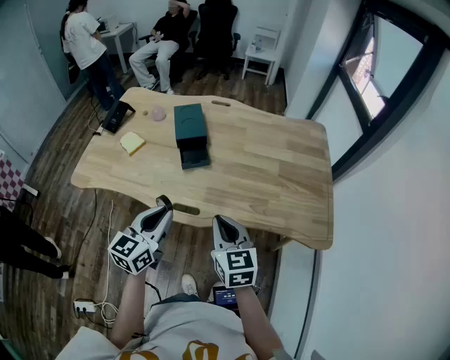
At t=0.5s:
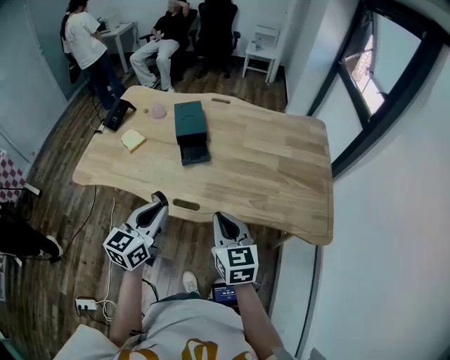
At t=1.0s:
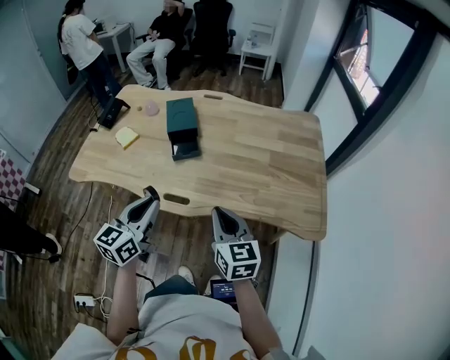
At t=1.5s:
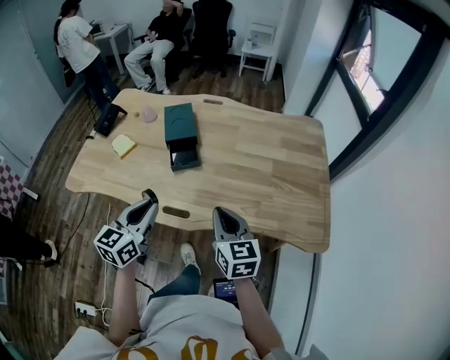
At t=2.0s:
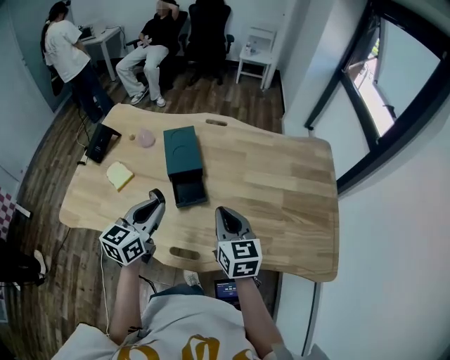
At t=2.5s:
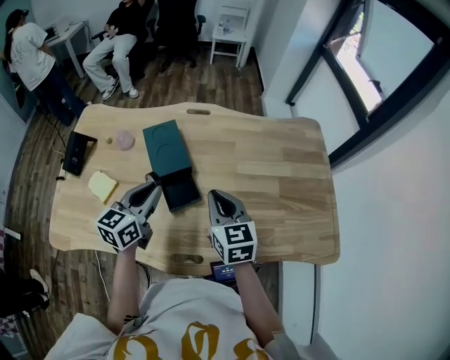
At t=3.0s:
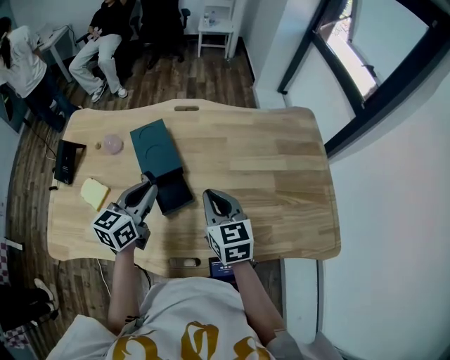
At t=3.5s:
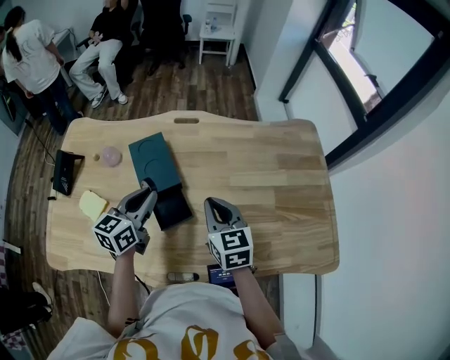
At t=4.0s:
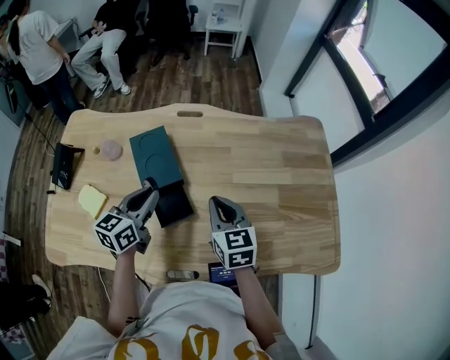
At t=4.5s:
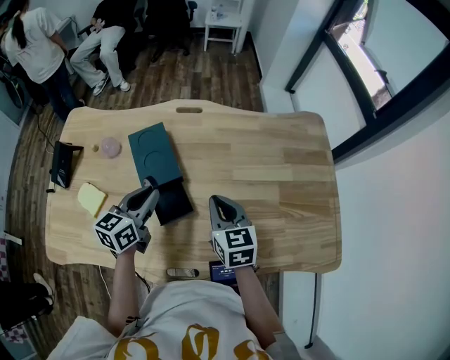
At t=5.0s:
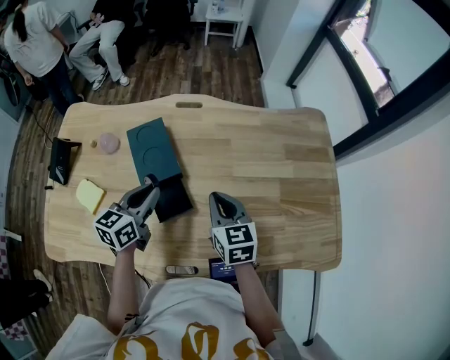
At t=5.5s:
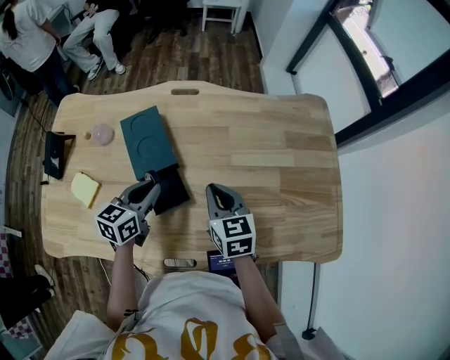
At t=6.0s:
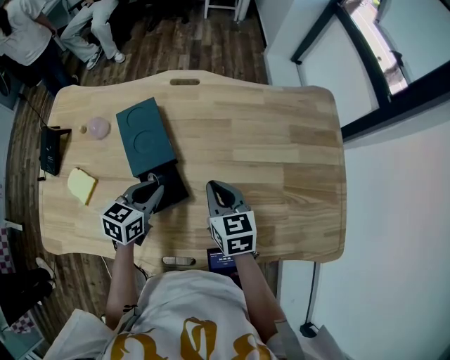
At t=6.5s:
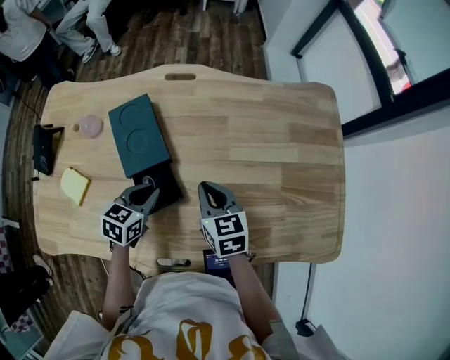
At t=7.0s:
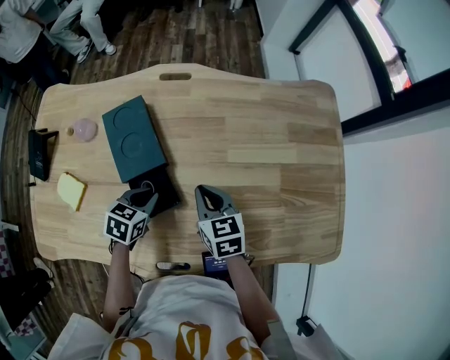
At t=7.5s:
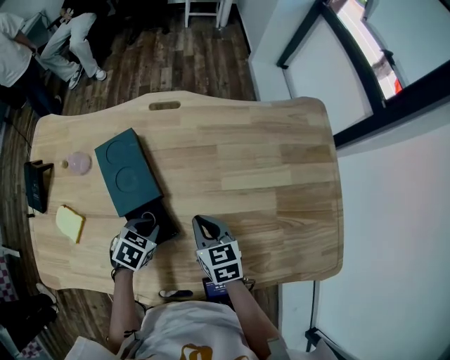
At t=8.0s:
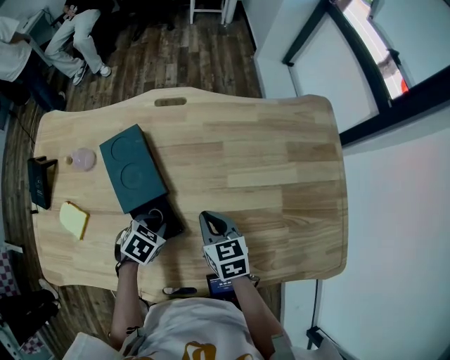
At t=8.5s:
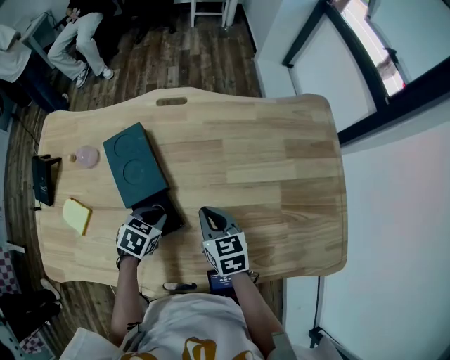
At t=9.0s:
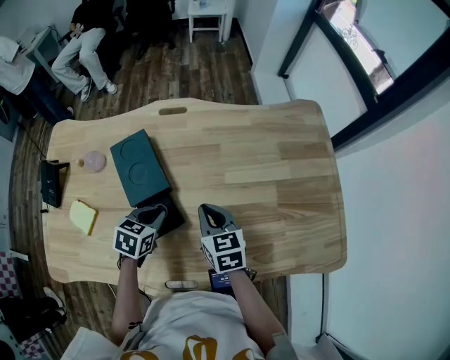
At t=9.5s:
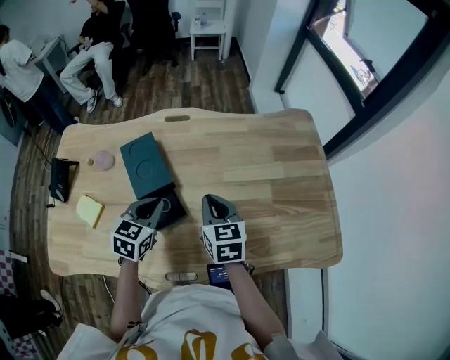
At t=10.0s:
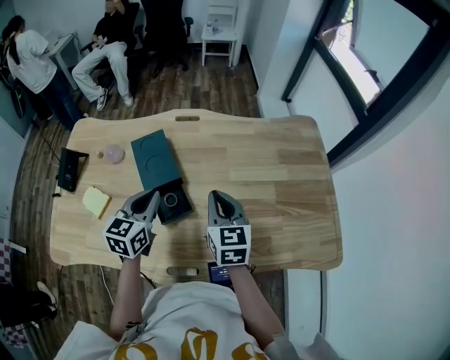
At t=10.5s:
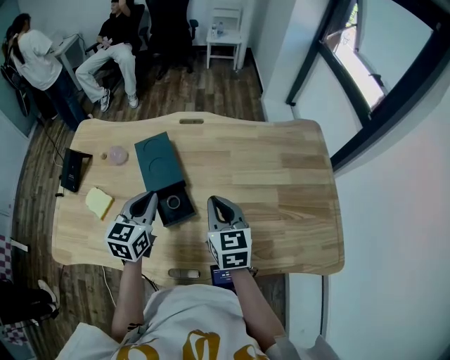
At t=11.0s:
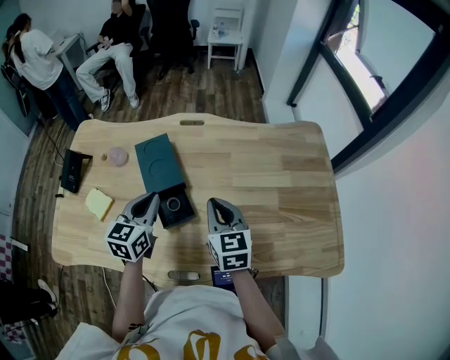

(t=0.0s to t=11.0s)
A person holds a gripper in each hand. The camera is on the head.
t=0.0s - t=2.0s: The grippers both shift forward by some 20 cm.
t=2.0s - t=3.5s: Both grippers move forward, approximately 15 cm.
t=3.5s - t=5.5s: Both grippers travel together downward, about 5 cm.
t=5.5s - t=7.5s: Both grippers move downward, some 10 cm. The left gripper tips its fingers downward by roughly 40 degrees.
t=7.5s - t=9.0s: Both grippers move upward, roughly 5 cm.
t=9.0s - t=11.0s: The right gripper moves upward, about 10 cm, while the left gripper goes roughly 15 cm upward, and angles its fingers upward, by approximately 30 degrees.

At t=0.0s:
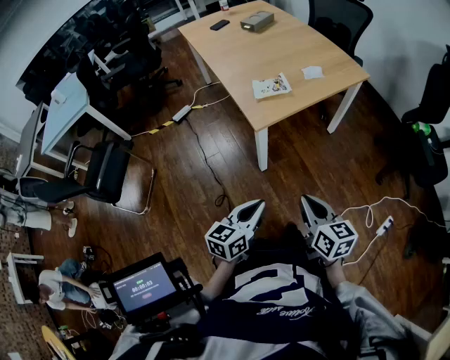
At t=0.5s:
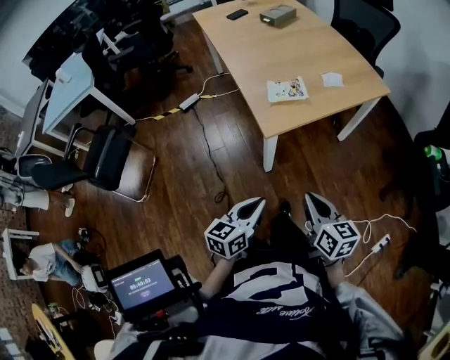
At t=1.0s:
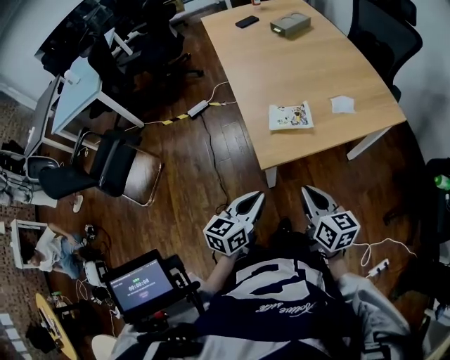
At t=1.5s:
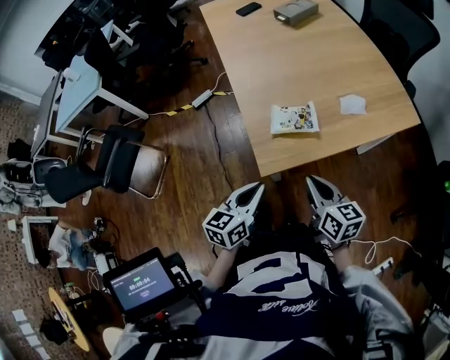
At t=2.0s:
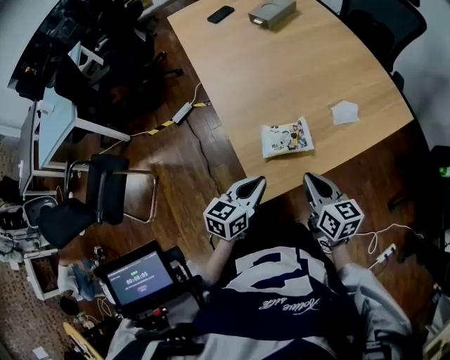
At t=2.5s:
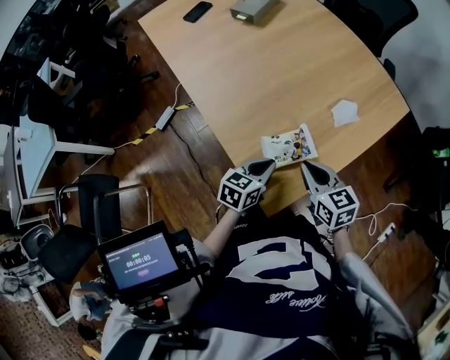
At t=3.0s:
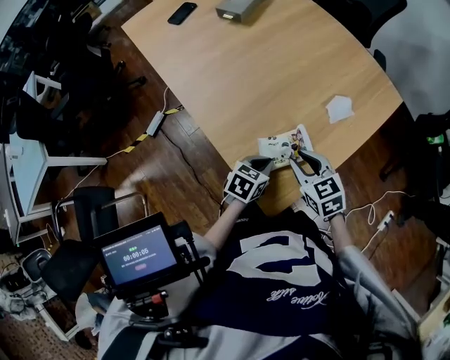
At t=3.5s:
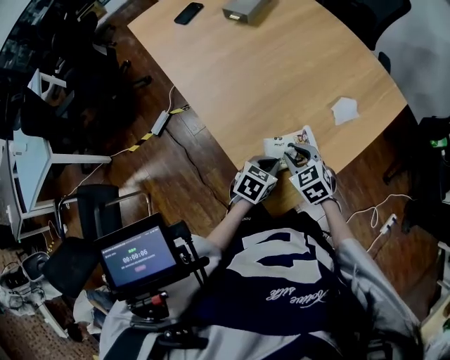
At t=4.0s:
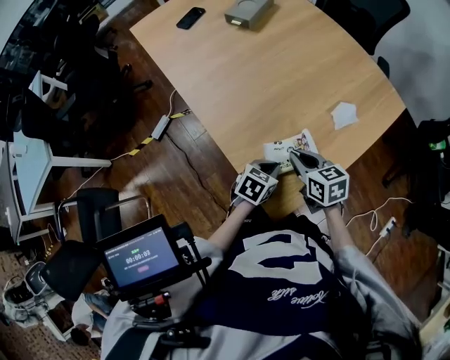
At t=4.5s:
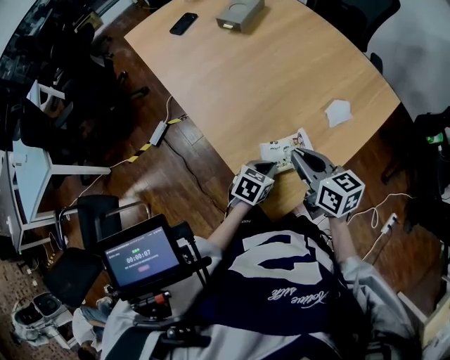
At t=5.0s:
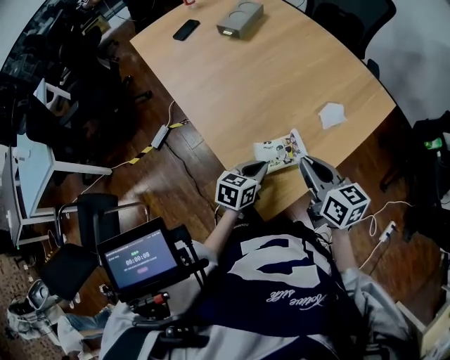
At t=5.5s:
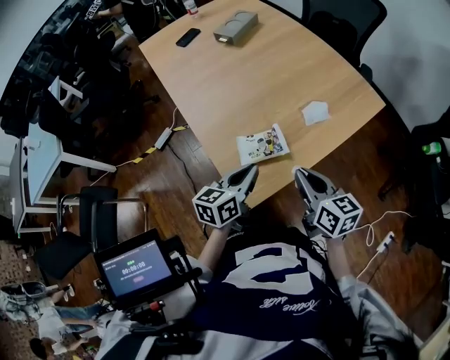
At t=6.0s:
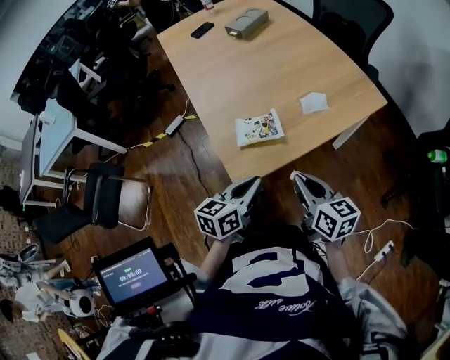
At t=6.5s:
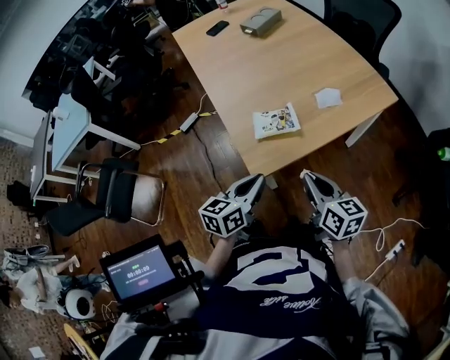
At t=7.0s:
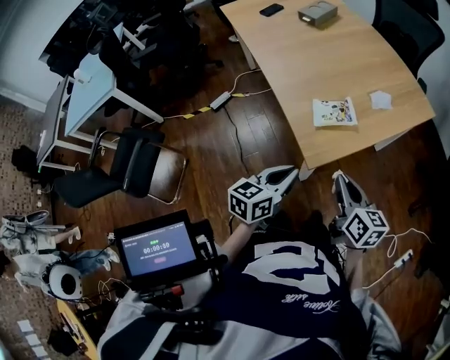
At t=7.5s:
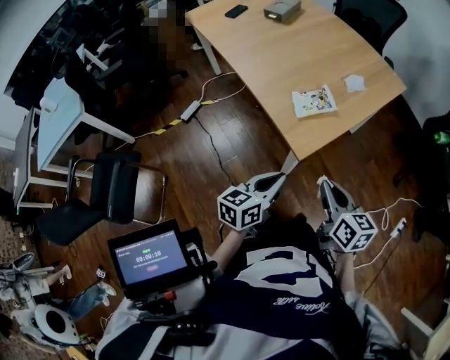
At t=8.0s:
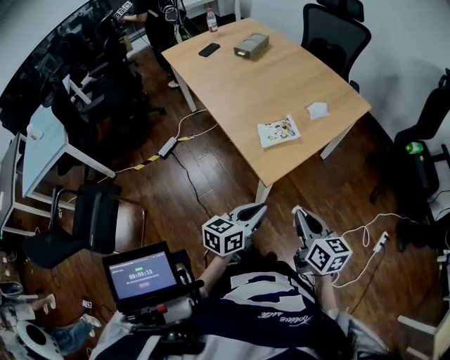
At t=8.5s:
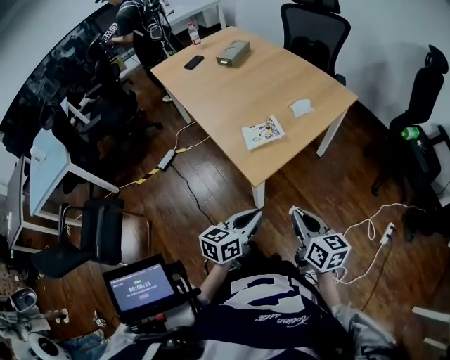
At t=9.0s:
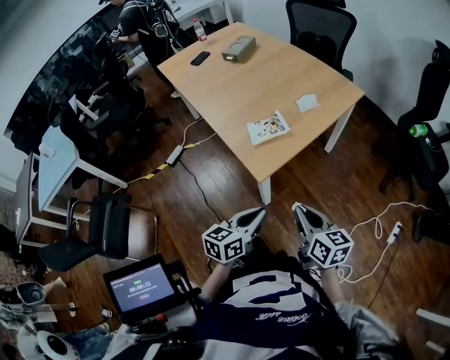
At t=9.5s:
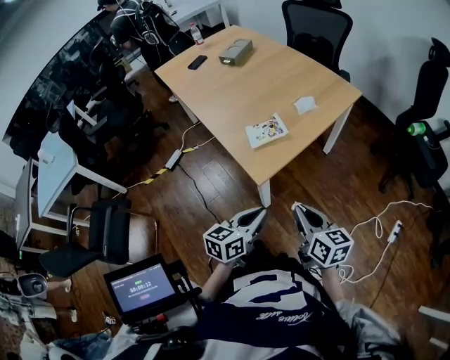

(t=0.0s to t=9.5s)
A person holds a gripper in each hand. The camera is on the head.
t=0.0s - t=2.0s: The two grippers travel together, forward, about 40 cm.
t=2.0s - t=4.0s: The right gripper shifts some 15 cm forward, to the left and downward, and opens, then closes again. The left gripper goes about 15 cm downward and forward, and turns by roughly 40 degrees.
t=4.0s - t=5.5s: The left gripper goes about 15 cm upward, and changes its angle by some 40 degrees; the right gripper shifts roughly 20 cm to the right, upward and backward.
t=5.5s - t=7.5s: The grippers both shift backward and to the left by about 25 cm.
t=7.5s - t=9.5s: The two grippers go approximately 10 cm to the right.

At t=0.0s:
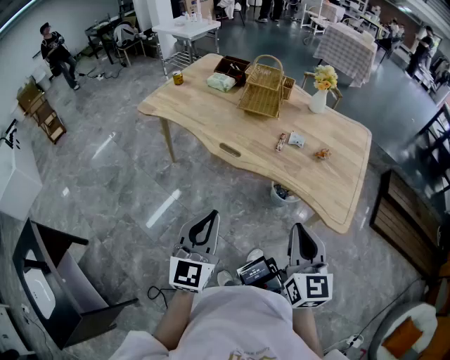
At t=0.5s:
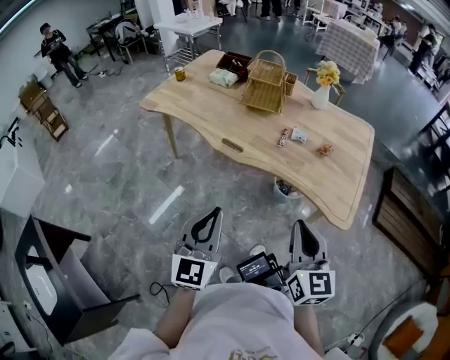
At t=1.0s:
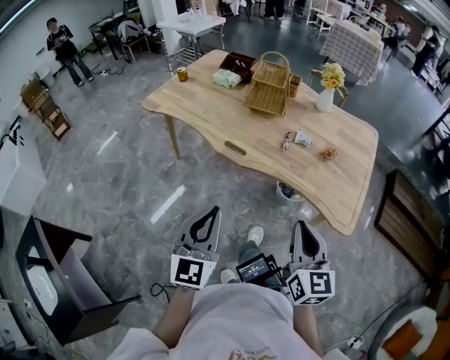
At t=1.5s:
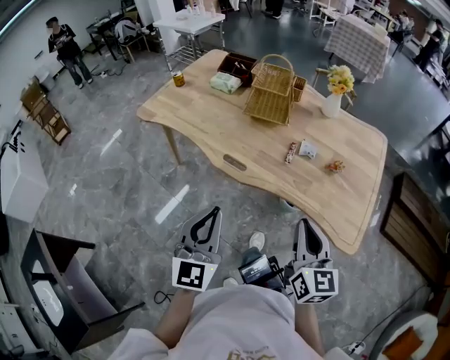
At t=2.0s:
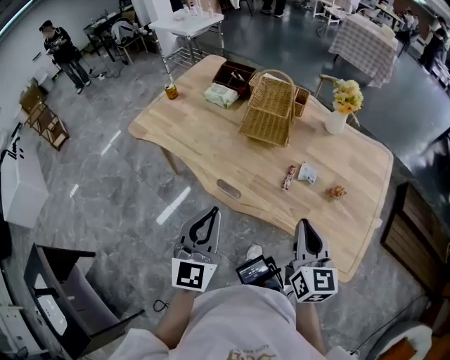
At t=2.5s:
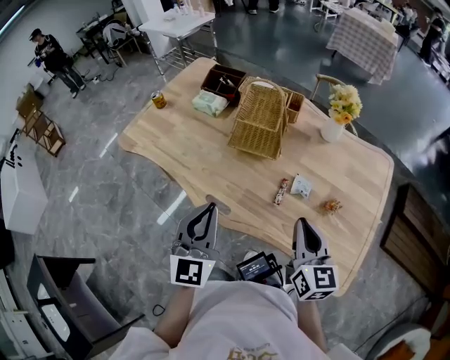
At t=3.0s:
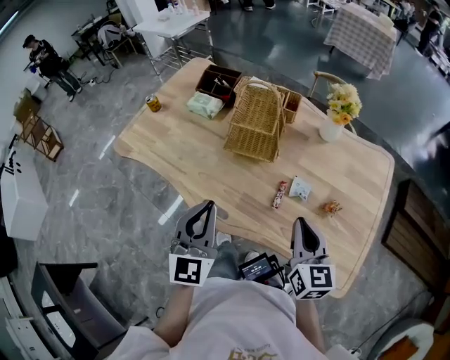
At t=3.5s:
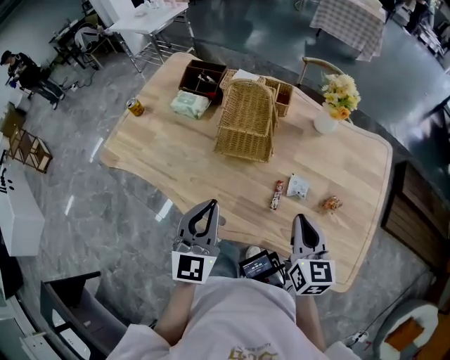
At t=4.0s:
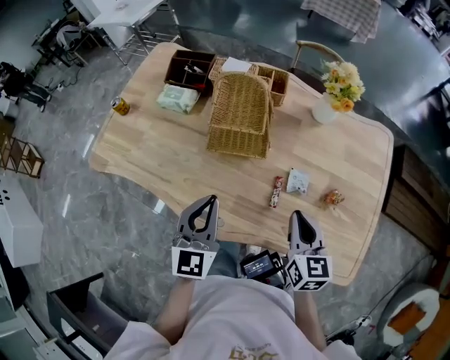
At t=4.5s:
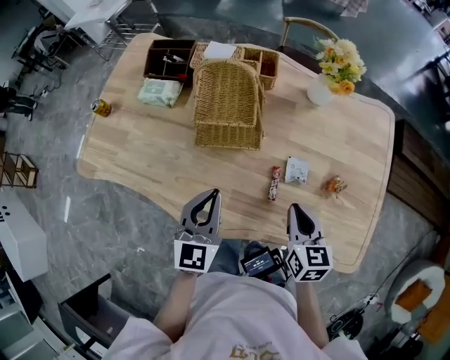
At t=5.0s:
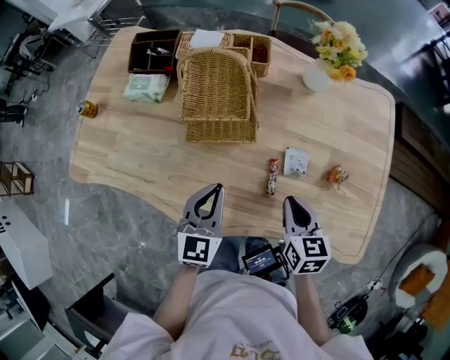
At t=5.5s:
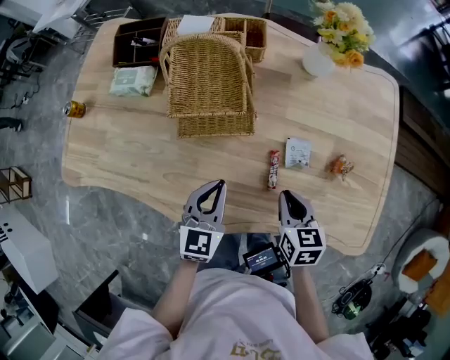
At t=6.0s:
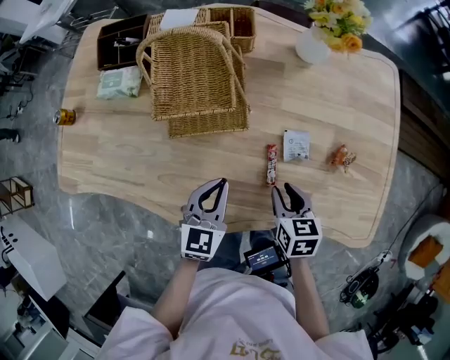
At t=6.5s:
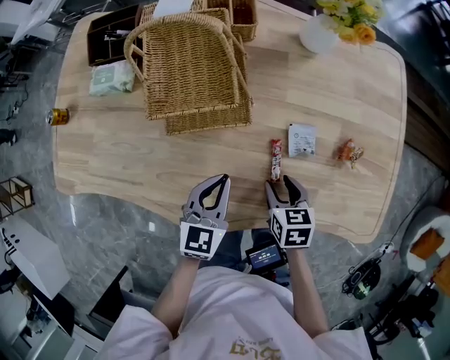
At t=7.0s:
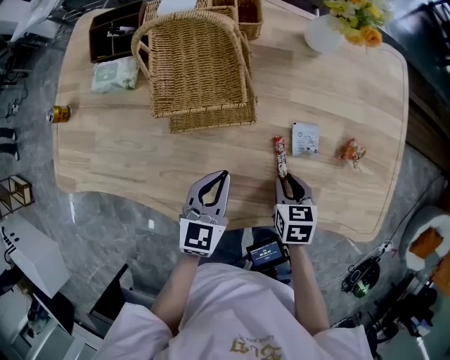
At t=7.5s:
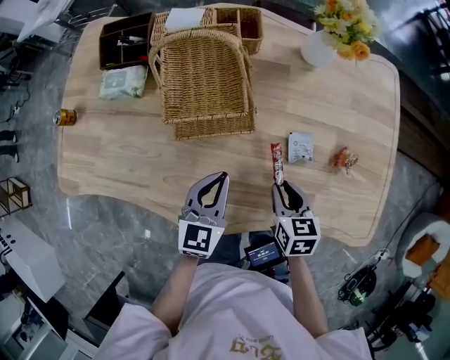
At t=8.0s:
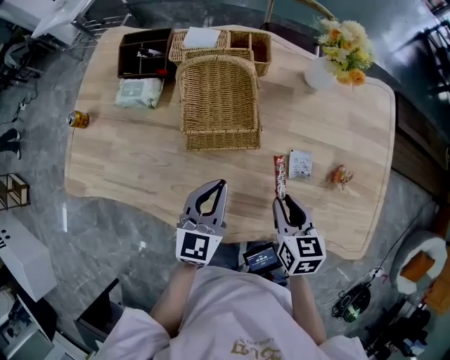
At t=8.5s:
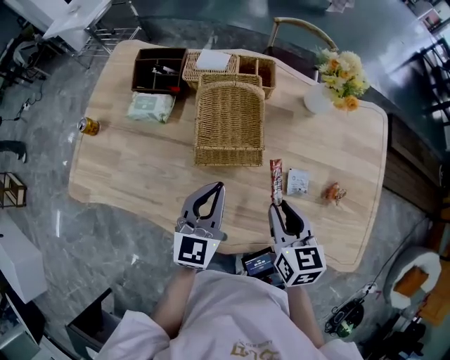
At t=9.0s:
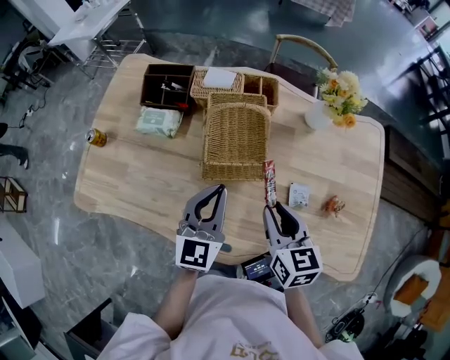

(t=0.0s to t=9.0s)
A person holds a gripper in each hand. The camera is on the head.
t=0.0s - t=2.0s: The grippers both shift forward by some 25 cm.
t=2.0s - t=4.5s: The two grippers go about 25 cm forward and downward. The left gripper turns by some 20 degrees. Meanwhile the right gripper rotates some 20 degrees.
t=4.5s - t=7.0s: The two grippers go some 15 cm downward. The right gripper changes its angle by roughly 20 degrees, and opens up.
t=7.0s - t=9.0s: The left gripper travels upward, to the left and forward by approximately 20 cm. The right gripper is displaced upward and to the left by some 25 cm, and rotates some 30 degrees.
